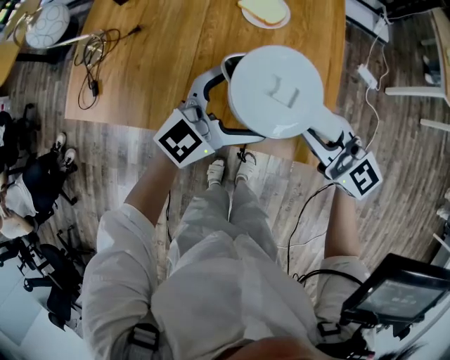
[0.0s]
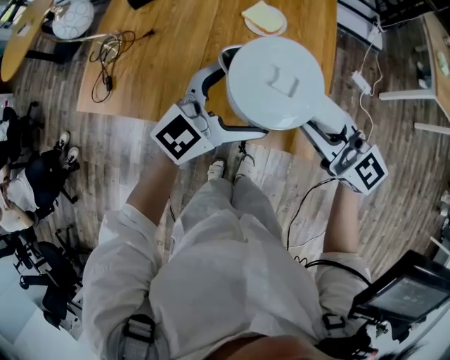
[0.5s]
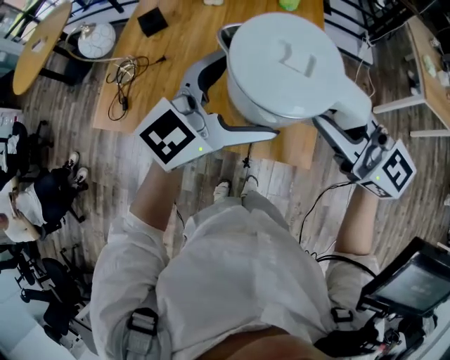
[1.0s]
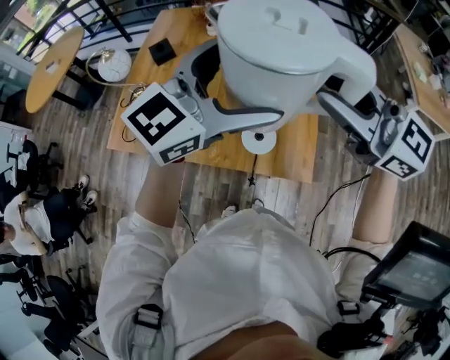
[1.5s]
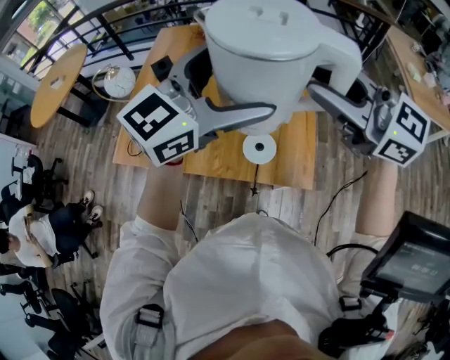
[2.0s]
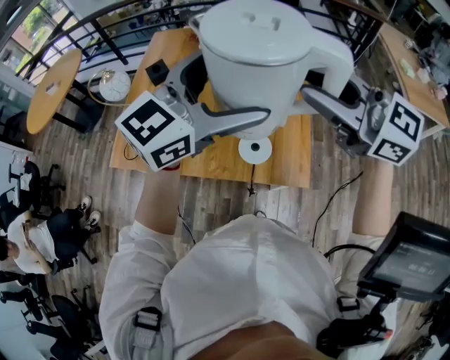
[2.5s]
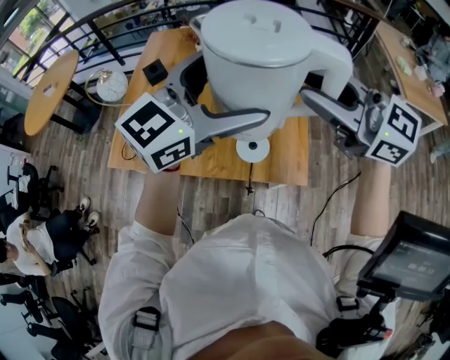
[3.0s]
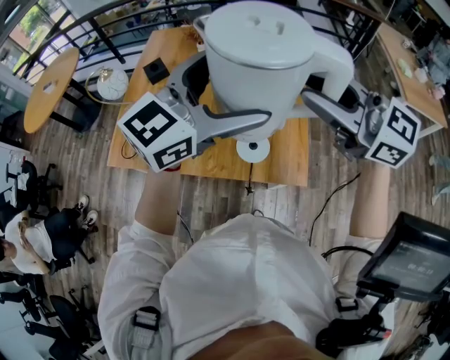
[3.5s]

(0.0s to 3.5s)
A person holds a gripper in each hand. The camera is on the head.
0.0s - 2.0s: The grippers both shift upward by roughly 35 cm.
2.0s - 3.5s: Neither gripper changes place.

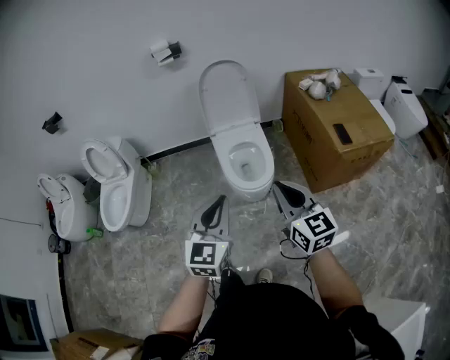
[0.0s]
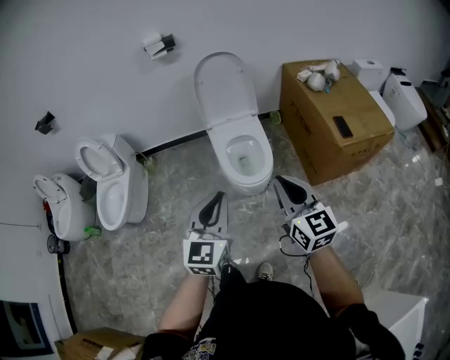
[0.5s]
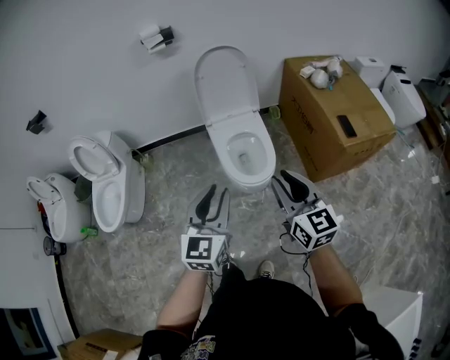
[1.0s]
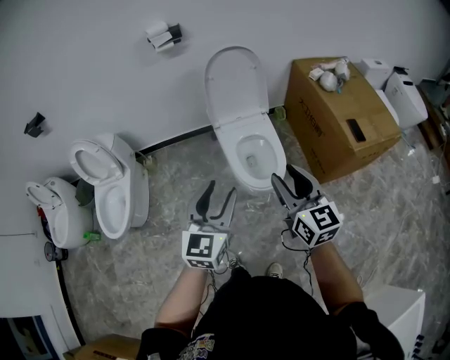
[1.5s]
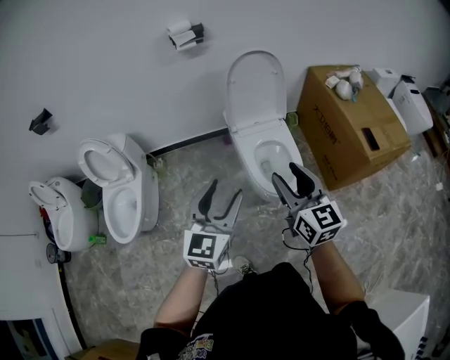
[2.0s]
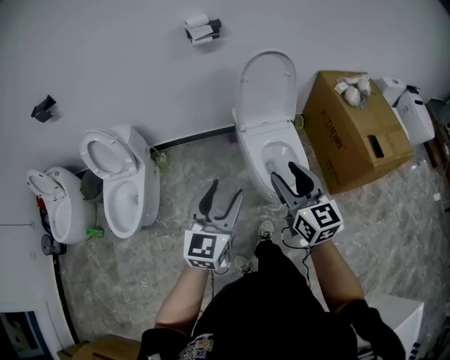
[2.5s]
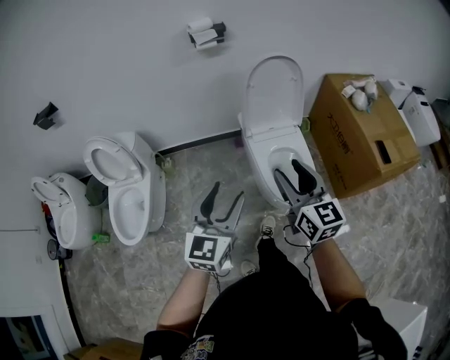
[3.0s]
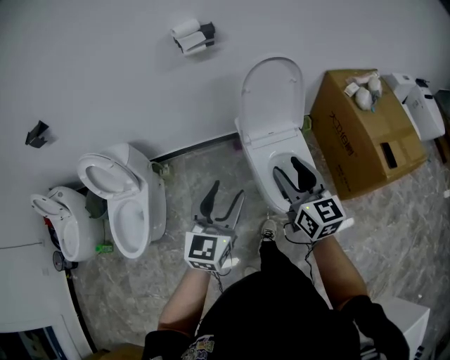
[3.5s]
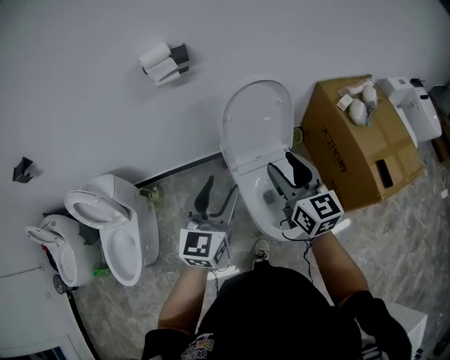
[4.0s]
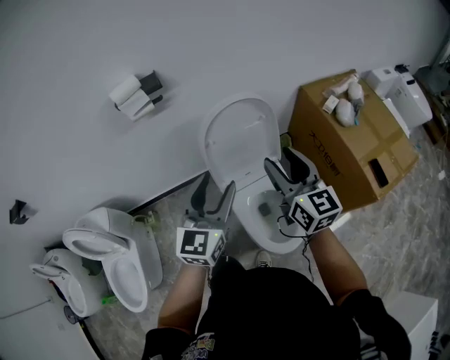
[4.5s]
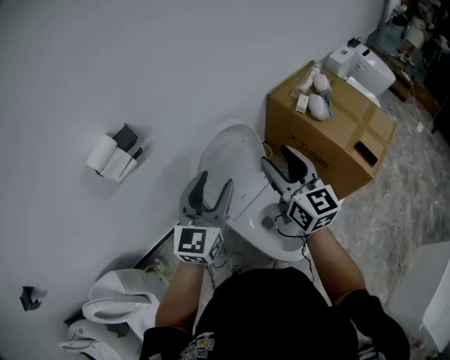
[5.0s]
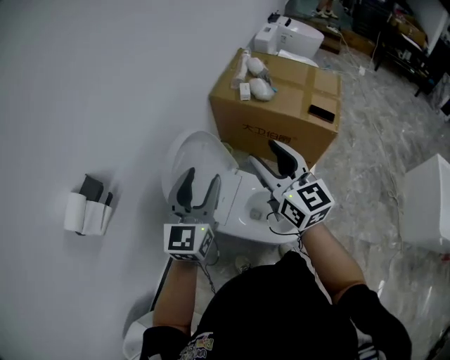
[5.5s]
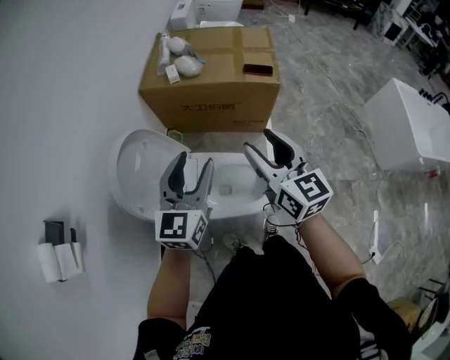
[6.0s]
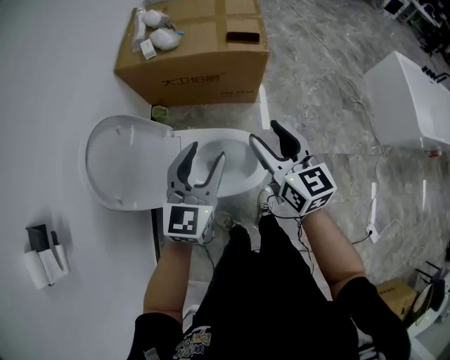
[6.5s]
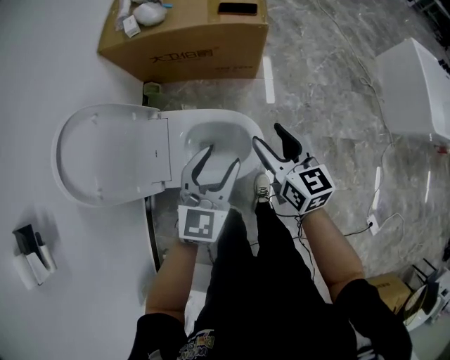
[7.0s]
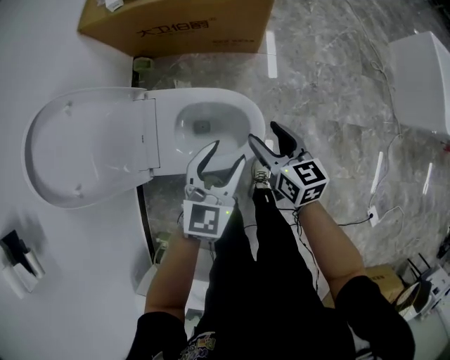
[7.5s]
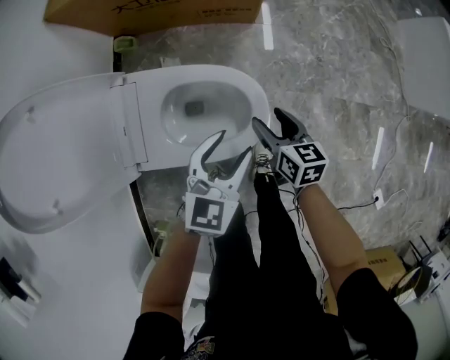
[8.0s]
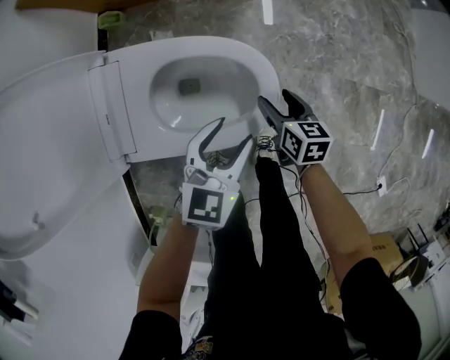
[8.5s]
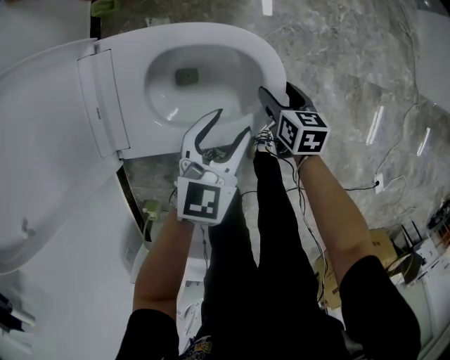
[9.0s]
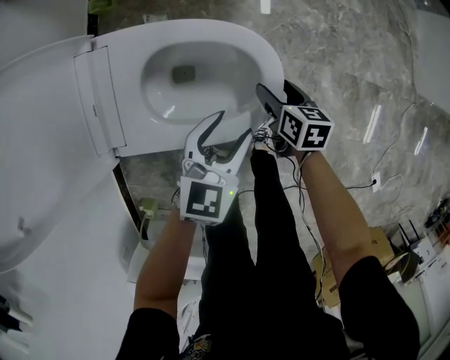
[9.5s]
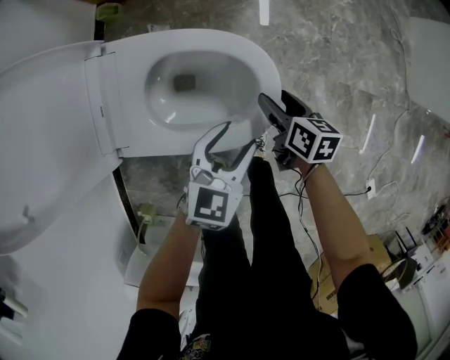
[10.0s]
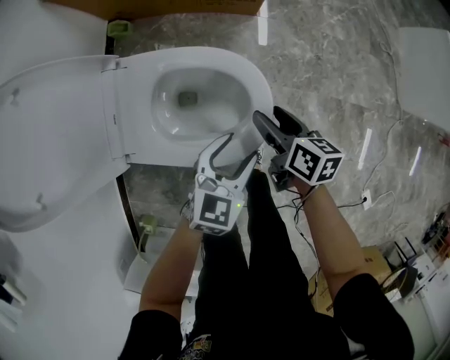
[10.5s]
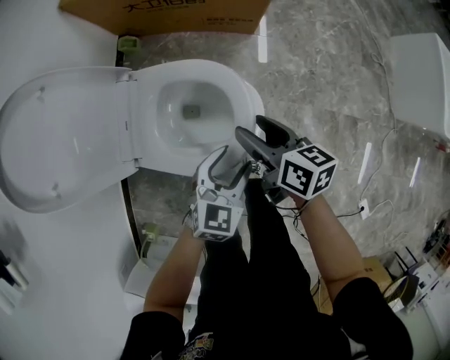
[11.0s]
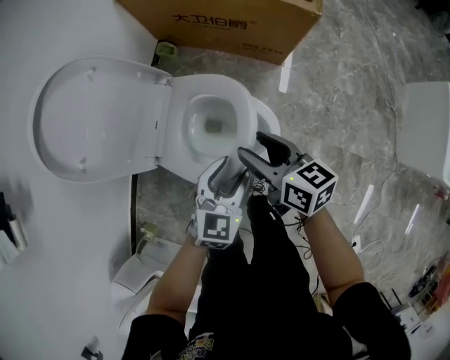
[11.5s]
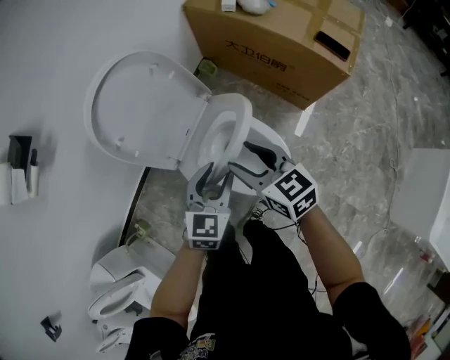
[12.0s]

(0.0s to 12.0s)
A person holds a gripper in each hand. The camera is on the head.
0.0s - 2.0s: The grippers both shift to the left and forward by roughly 25 cm. The right gripper opens its fingers. Meanwhile the left gripper opens.
2.0s - 4.0s: The grippers both shift forward by roughly 30 cm.
4.0s - 6.0s: The right gripper shifts by roughly 15 cm, and rotates some 70 degrees, while the left gripper shifts by approximately 20 cm, and swivels some 70 degrees.
6.0s - 8.0s: The right gripper shifts roughly 50 cm downward, and points its fingers roughly 30 degrees further downward. The left gripper travels downward and to the right by about 40 cm, and changes its angle by about 30 degrees.
8.0s - 10.0s: Both grippers travel together downward, about 10 cm.
10.0s - 12.0s: The right gripper heads upward, covering approximately 35 cm, and changes its angle by about 70 degrees; the left gripper heads upward, covering roughly 20 cm, and swivels roughly 40 degrees.

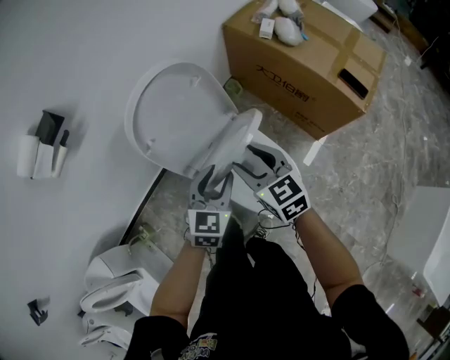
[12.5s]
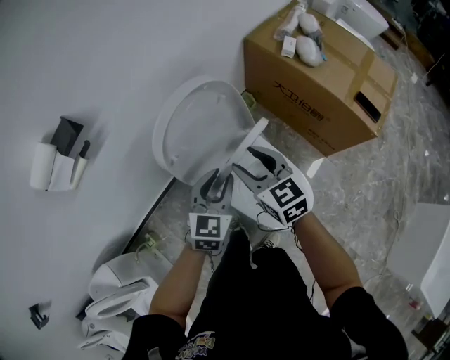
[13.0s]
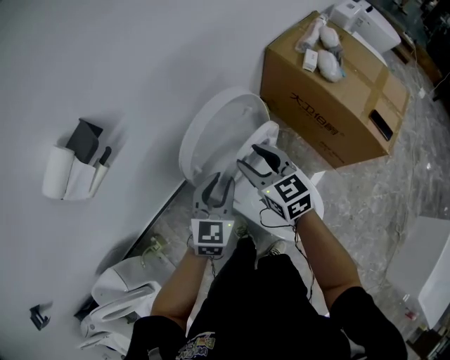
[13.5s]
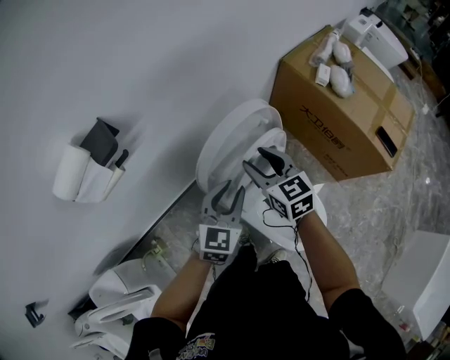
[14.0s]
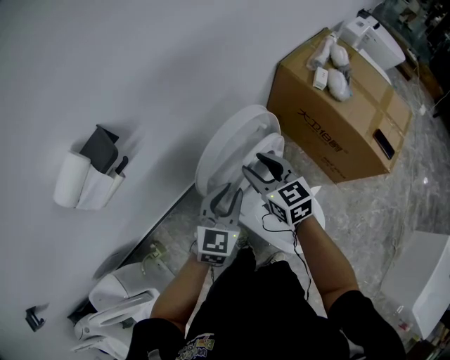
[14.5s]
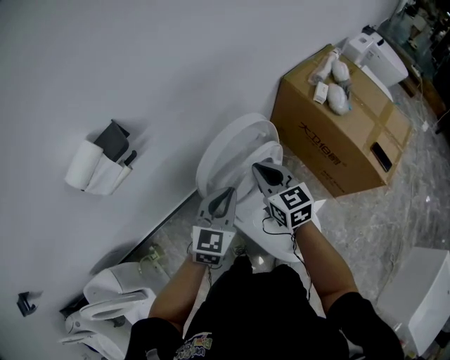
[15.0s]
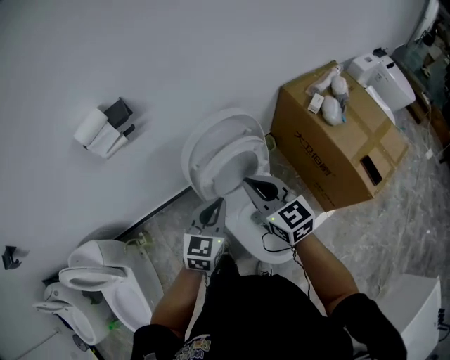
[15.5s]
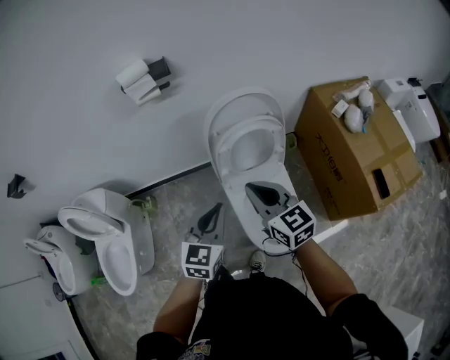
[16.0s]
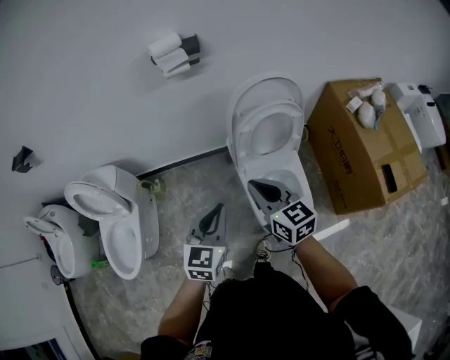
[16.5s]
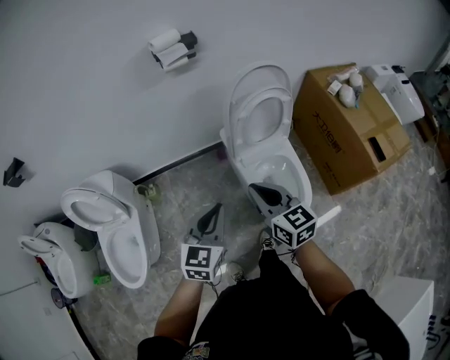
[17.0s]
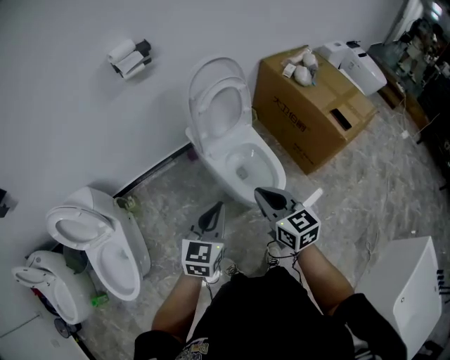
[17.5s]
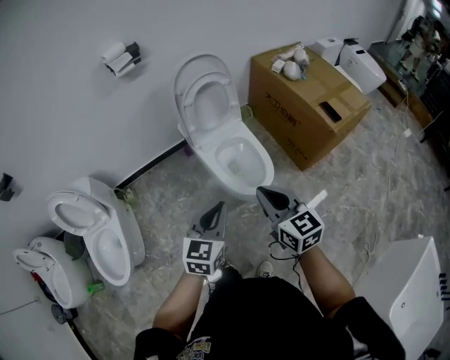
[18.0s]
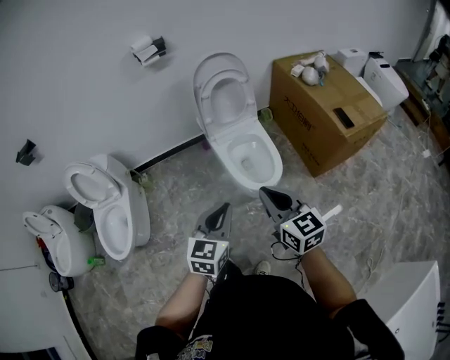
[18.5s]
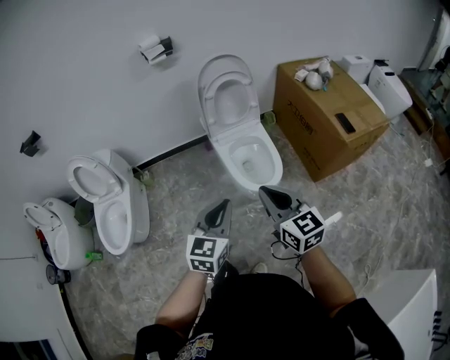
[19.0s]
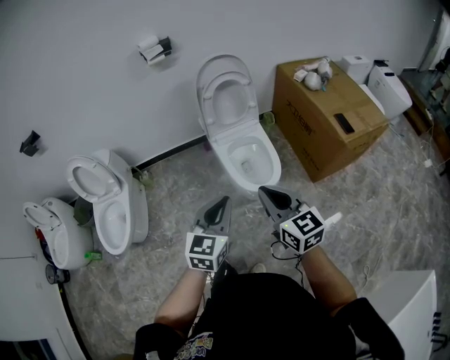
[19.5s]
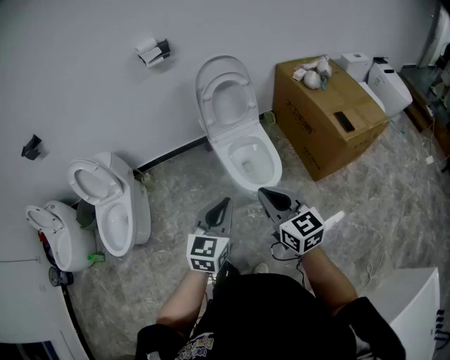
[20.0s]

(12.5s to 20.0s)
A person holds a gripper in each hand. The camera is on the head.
12.5s - 14.5s: The two grippers go some 20 cm forward and to the left.
14.5s - 16.5s: The left gripper ends up some 35 cm from where it was, swivels roughly 40 degrees, and closes. The right gripper shifts by about 35 cm, changes its angle by about 30 degrees, and closes.
16.5s - 18.0s: Both grippers travel together backward, roughly 30 cm. The left gripper changes its angle by roughly 20 degrees; the right gripper turns by some 20 degrees.
18.0s - 20.0s: The right gripper heads backward, covering approximately 10 cm. Meanwhile the left gripper is displaced backward and to the right by approximately 10 cm.

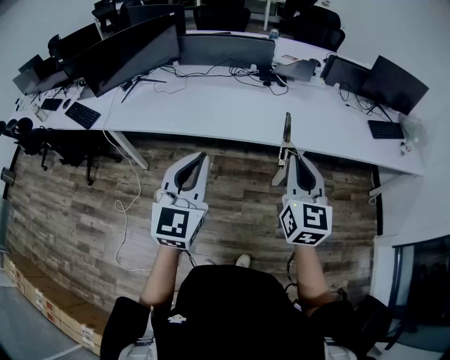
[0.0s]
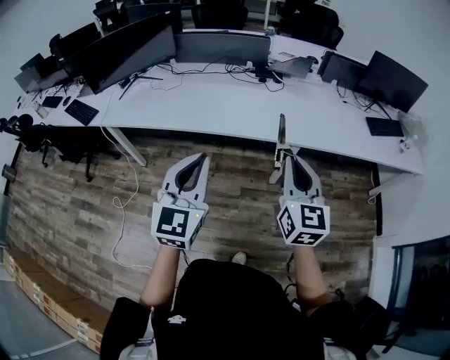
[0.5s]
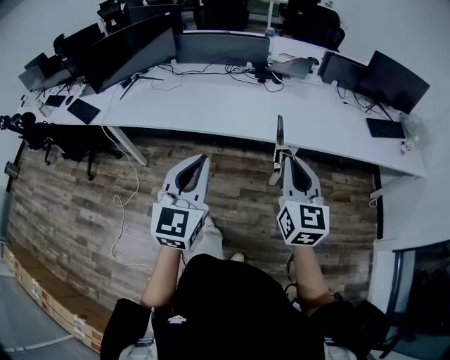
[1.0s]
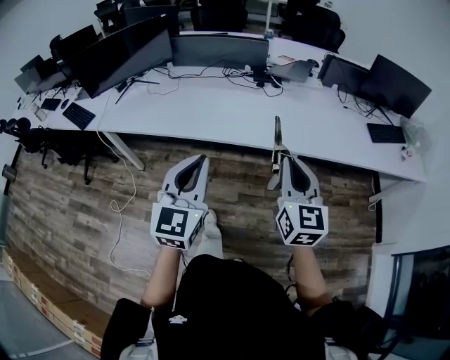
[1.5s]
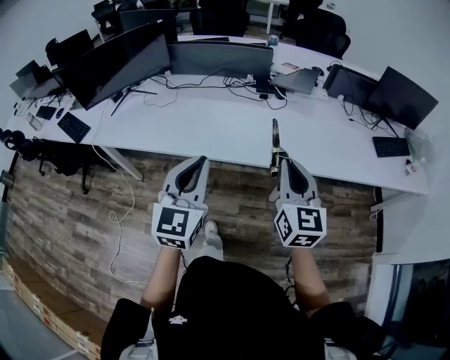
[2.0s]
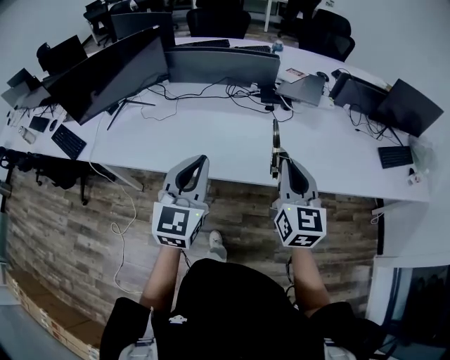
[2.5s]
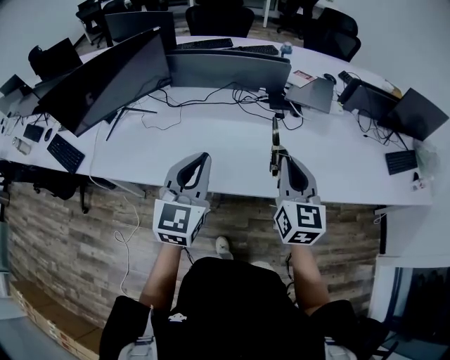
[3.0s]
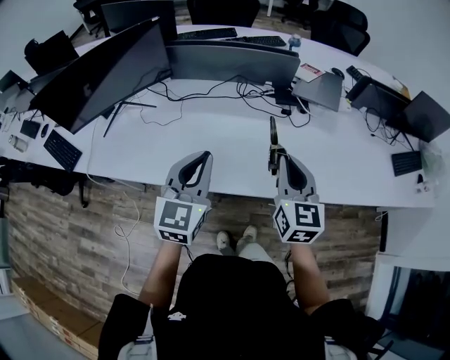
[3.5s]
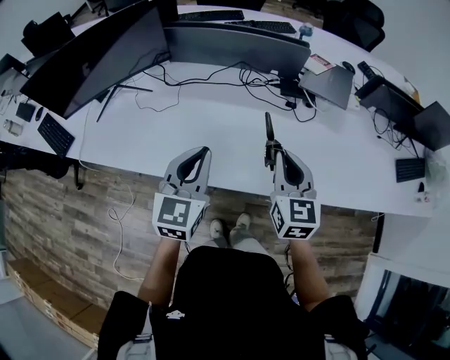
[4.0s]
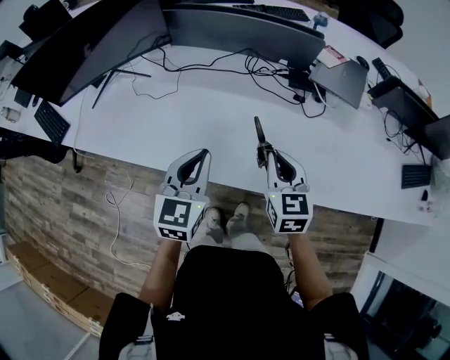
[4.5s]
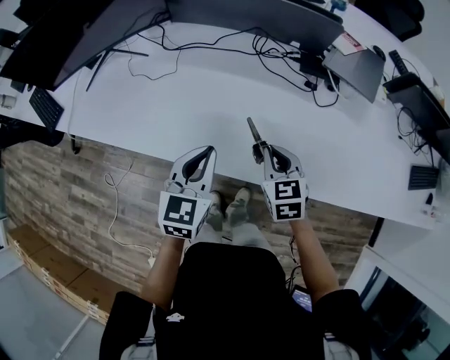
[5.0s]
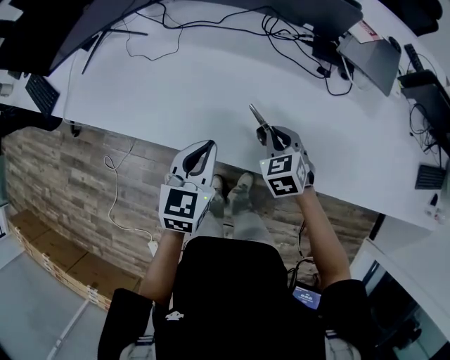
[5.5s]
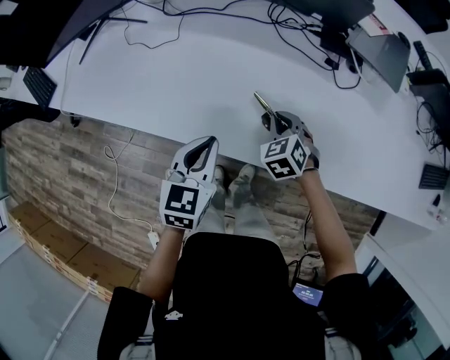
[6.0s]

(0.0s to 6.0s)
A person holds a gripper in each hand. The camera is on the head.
0.0s - 2.0s: The two grippers go some 15 cm forward.
2.0s - 4.0s: Both grippers travel together forward and to the left, about 30 cm.
4.0s - 6.0s: The two grippers go some 25 cm downward. The left gripper rotates approximately 20 degrees. The right gripper angles its fingers downward, by some 40 degrees.
